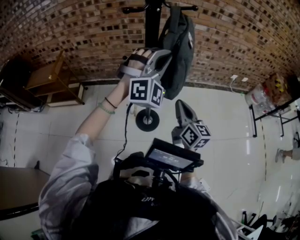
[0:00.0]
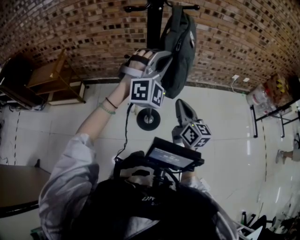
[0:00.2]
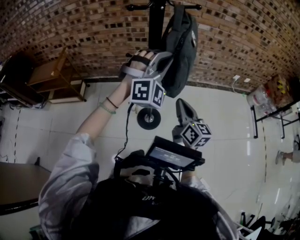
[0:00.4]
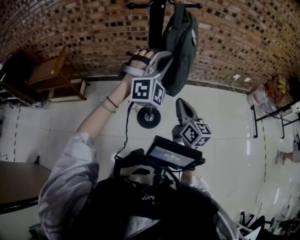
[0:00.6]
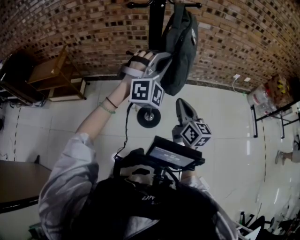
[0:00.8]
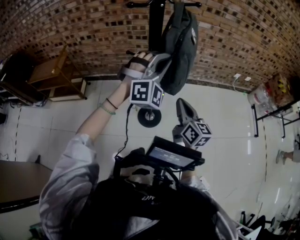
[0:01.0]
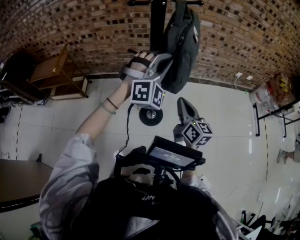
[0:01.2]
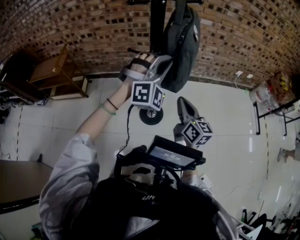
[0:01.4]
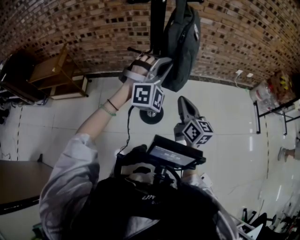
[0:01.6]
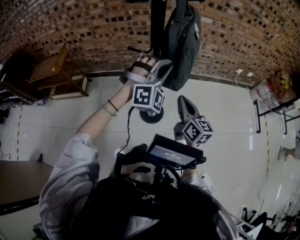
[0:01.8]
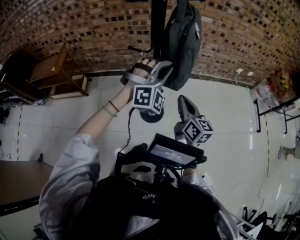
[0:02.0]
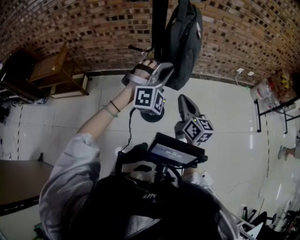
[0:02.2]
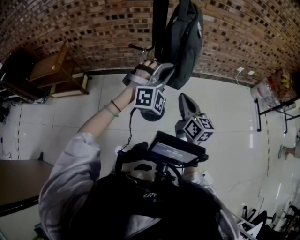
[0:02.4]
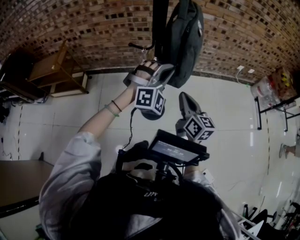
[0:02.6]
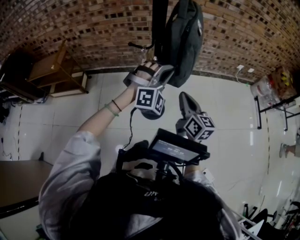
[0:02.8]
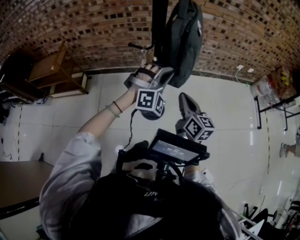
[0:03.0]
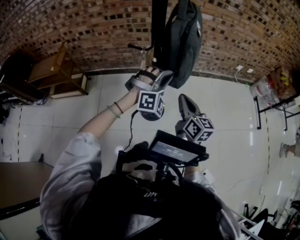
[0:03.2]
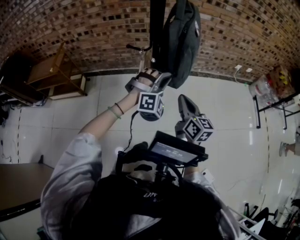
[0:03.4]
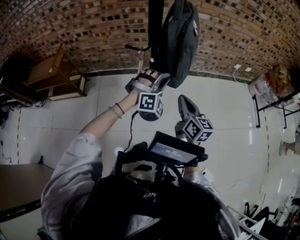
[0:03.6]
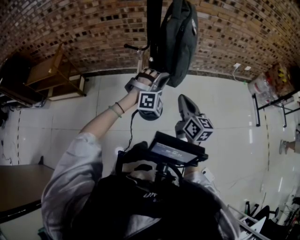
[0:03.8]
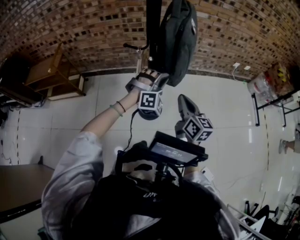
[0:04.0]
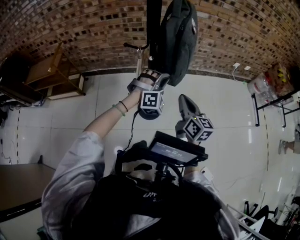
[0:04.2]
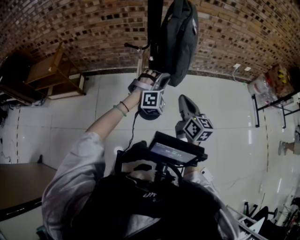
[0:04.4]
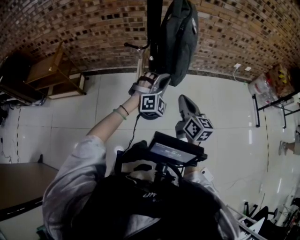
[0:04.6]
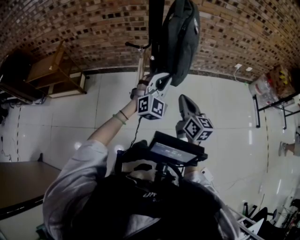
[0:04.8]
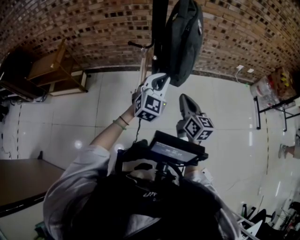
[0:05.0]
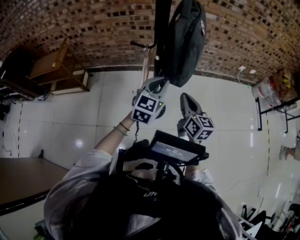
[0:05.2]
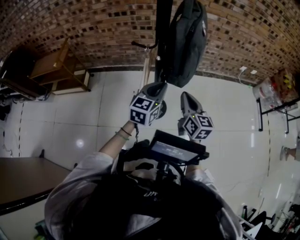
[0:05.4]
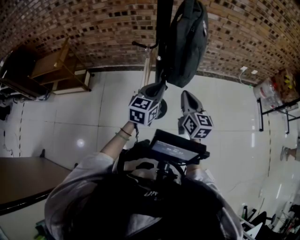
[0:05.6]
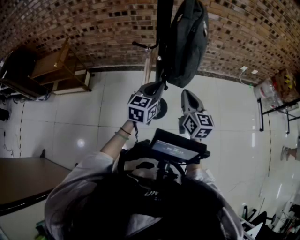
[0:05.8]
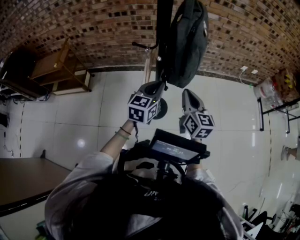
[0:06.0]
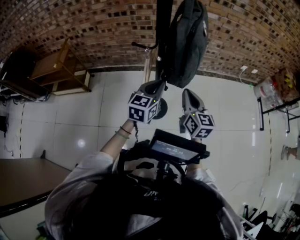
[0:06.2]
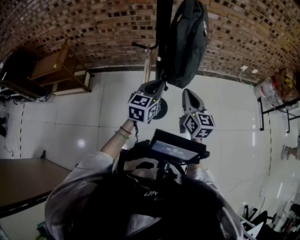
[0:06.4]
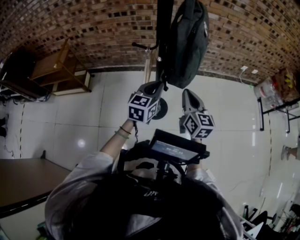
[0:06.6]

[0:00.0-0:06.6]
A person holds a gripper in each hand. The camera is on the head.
0:00.0 to 0:01.6: The left gripper is displaced downward by roughly 5 cm.
0:01.6 to 0:03.2: The left gripper moves downward, about 10 cm.
0:03.2 to 0:05.0: The left gripper rotates around the line of its fingers by some 50 degrees, counterclockwise from behind.
0:05.0 to 0:06.6: The left gripper moves about 5 cm, and turns by about 30 degrees.

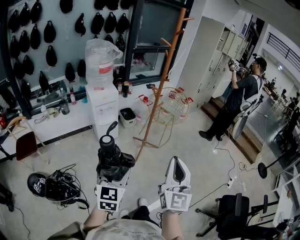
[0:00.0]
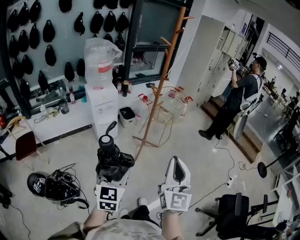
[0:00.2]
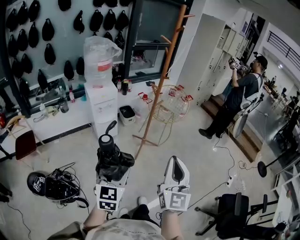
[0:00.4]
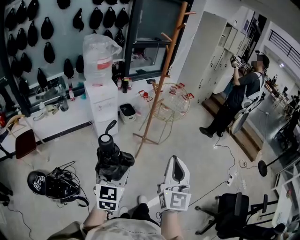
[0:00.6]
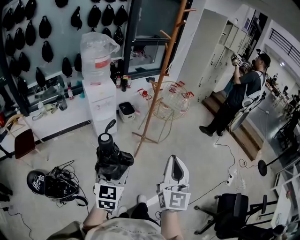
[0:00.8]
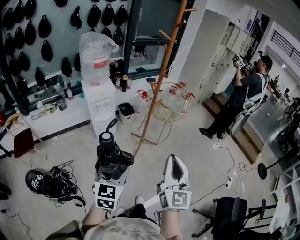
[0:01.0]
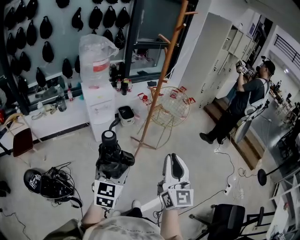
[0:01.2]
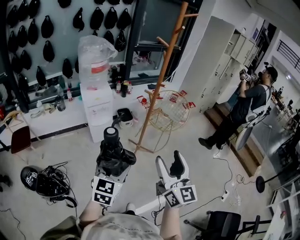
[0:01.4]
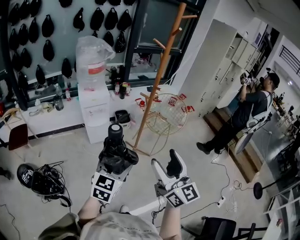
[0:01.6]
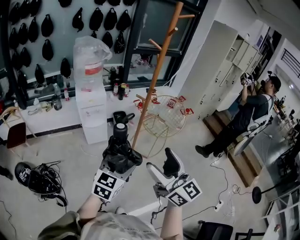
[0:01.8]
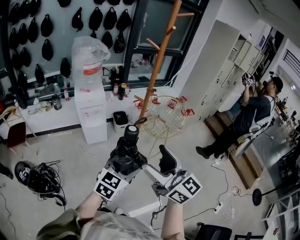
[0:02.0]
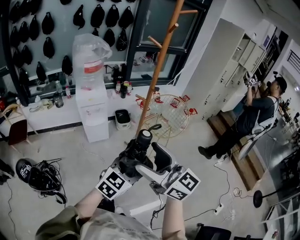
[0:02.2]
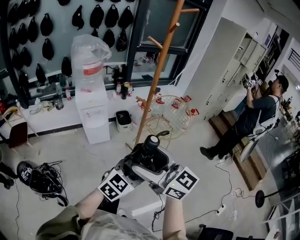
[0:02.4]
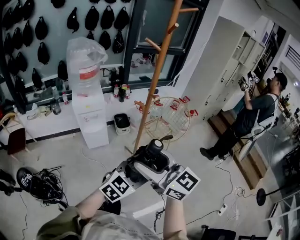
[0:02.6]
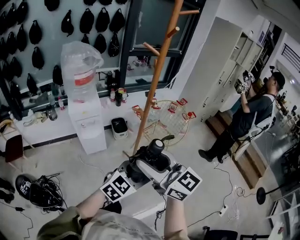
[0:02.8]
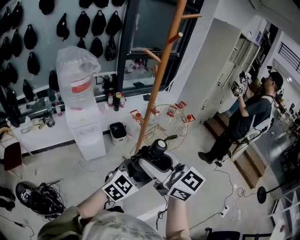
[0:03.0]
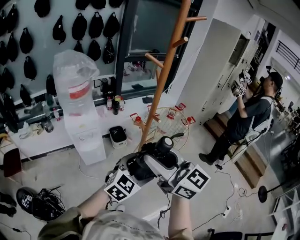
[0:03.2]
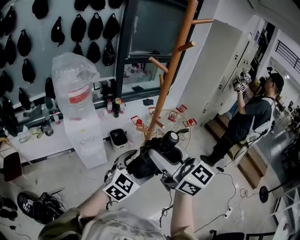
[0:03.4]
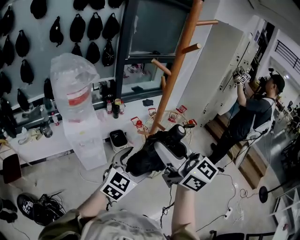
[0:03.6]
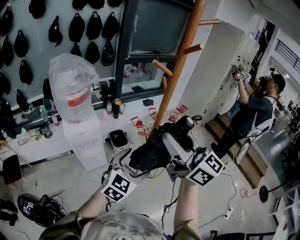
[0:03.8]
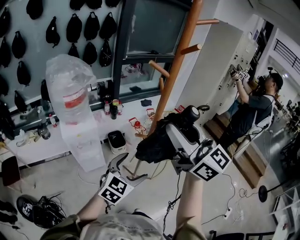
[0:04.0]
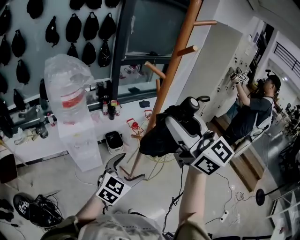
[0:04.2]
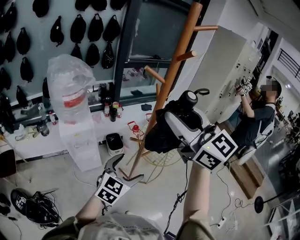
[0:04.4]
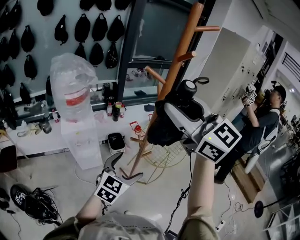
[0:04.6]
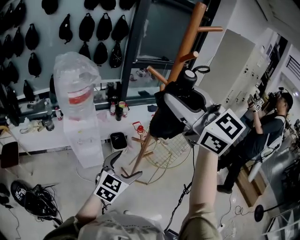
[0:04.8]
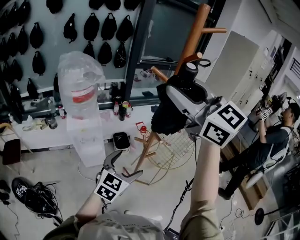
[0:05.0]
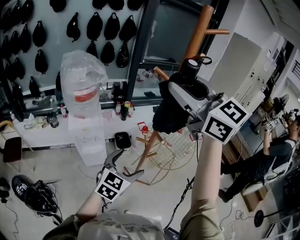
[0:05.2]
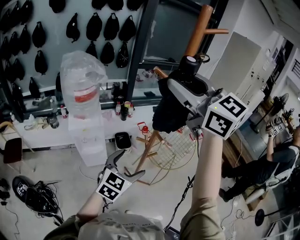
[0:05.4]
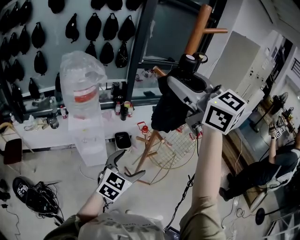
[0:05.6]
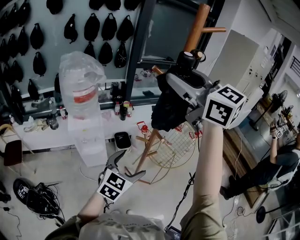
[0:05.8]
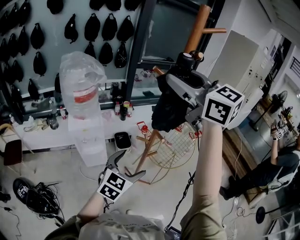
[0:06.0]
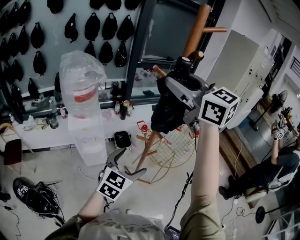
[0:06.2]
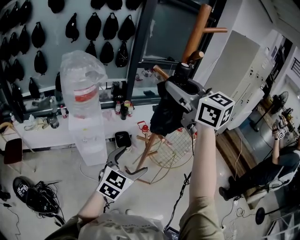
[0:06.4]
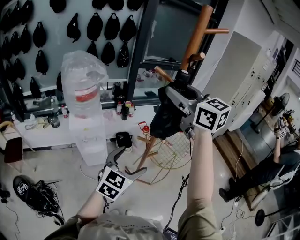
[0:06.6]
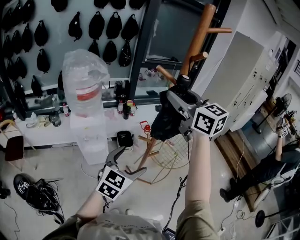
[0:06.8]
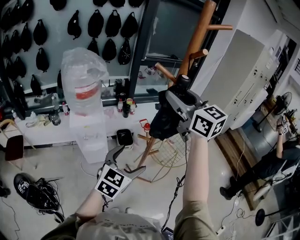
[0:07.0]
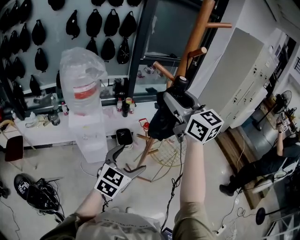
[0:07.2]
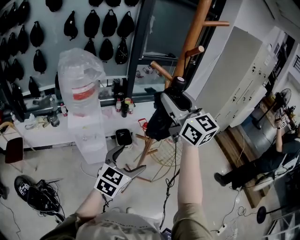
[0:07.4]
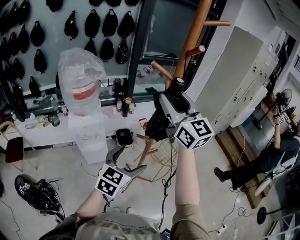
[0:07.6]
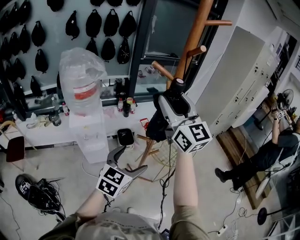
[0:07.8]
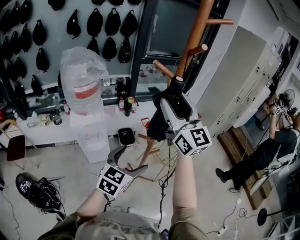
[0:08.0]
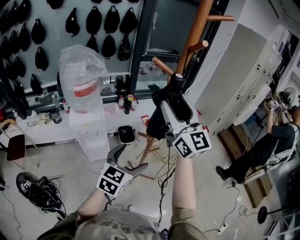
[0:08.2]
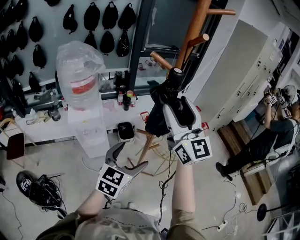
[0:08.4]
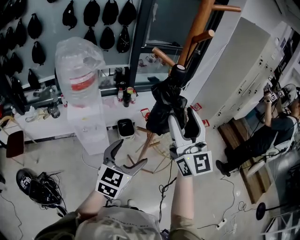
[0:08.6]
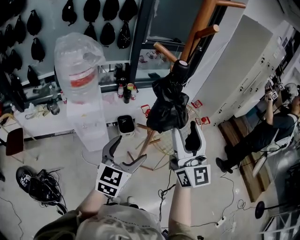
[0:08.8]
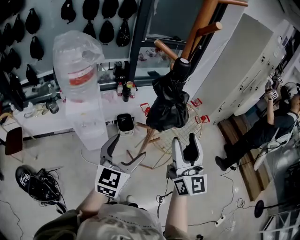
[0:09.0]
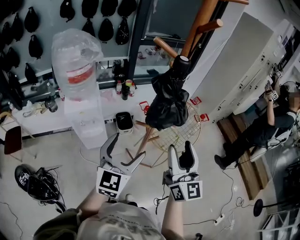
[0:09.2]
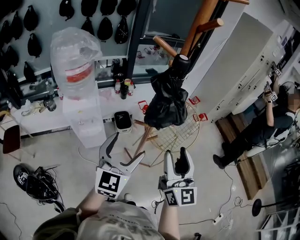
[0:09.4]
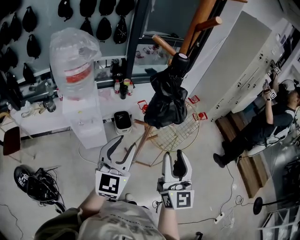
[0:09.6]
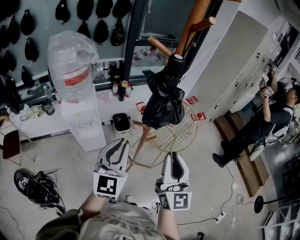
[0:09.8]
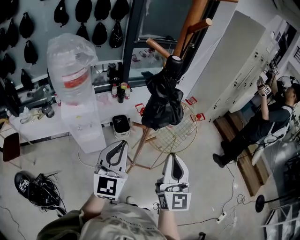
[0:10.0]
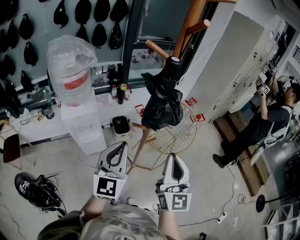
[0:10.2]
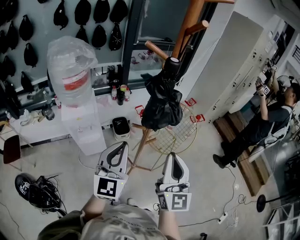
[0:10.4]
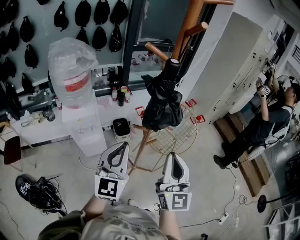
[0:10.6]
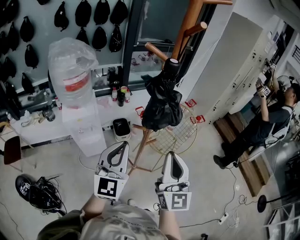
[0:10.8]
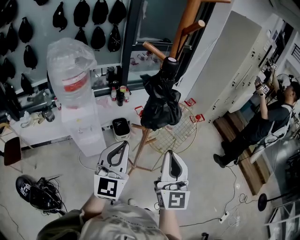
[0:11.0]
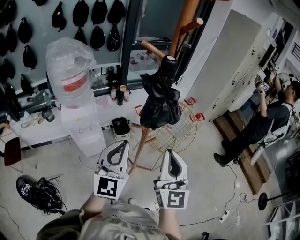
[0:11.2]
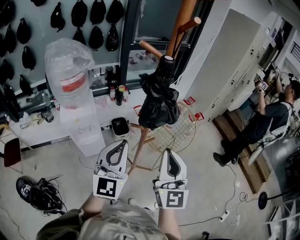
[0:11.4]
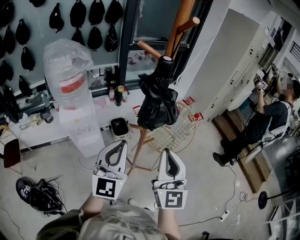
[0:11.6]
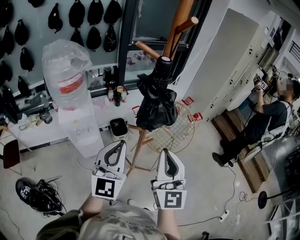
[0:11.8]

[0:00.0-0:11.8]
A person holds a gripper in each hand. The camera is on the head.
0:00.0 to 0:01.4: The right gripper heads forward, covering roughly 15 cm, swivels roughly 30 degrees, and opens, while the left gripper is displaced forward and to the right by approximately 15 cm.
0:01.4 to 0:03.0: The left gripper moves forward and to the right, roughly 25 cm, and rotates about 30 degrees, while the right gripper is displaced forward by roughly 20 cm, and turns by some 40 degrees.
0:03.0 to 0:04.4: The right gripper is displaced forward and upward by roughly 25 cm, while the left gripper goes some 15 cm forward.
0:04.4 to 0:06.0: The right gripper goes about 10 cm forward and upward.
0:06.0 to 0:07.4: The right gripper heads downward, covering some 10 cm.
0:07.4 to 0:08.8: The right gripper shifts roughly 15 cm downward, backward and to the right, and changes its angle by roughly 20 degrees.
0:08.8 to 0:10.4: The right gripper shifts roughly 10 cm backward and downward, and closes up; the left gripper rotates about 20 degrees, and closes up.
0:10.4 to 0:11.8: The grippers make only small movements.

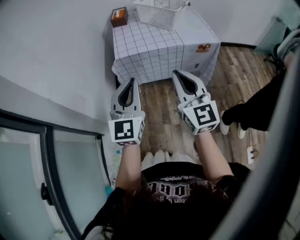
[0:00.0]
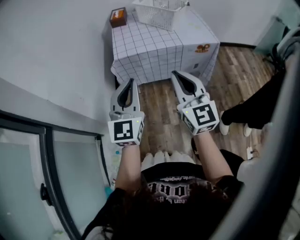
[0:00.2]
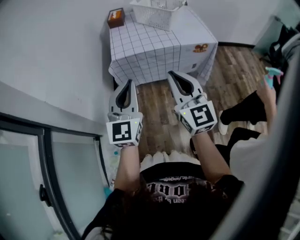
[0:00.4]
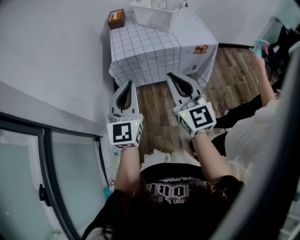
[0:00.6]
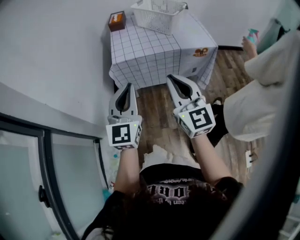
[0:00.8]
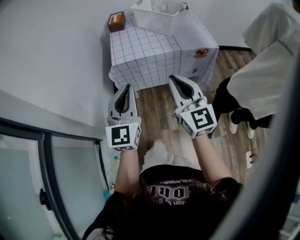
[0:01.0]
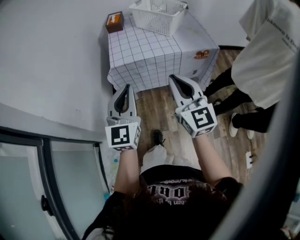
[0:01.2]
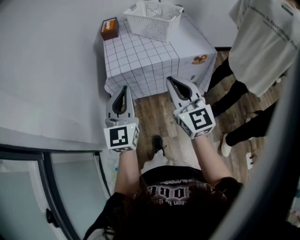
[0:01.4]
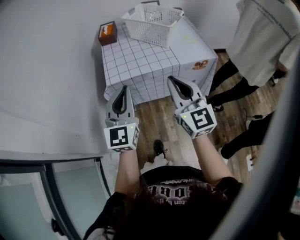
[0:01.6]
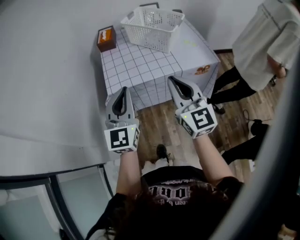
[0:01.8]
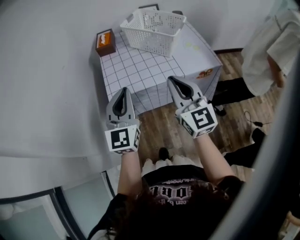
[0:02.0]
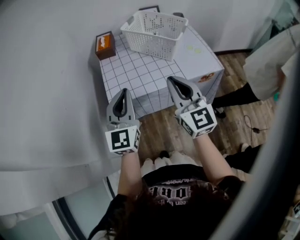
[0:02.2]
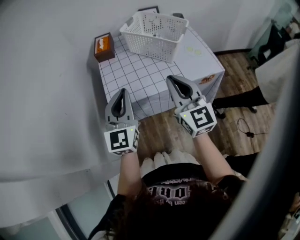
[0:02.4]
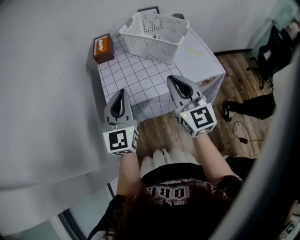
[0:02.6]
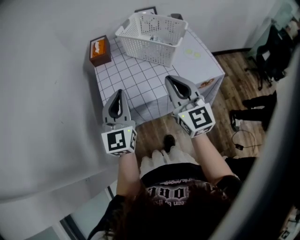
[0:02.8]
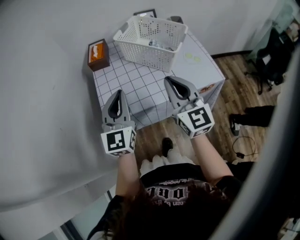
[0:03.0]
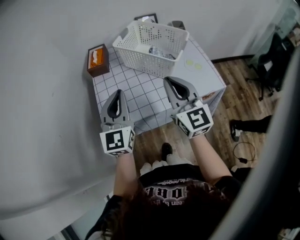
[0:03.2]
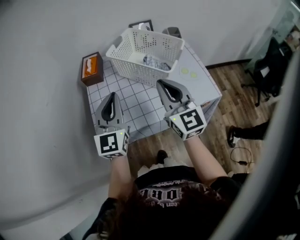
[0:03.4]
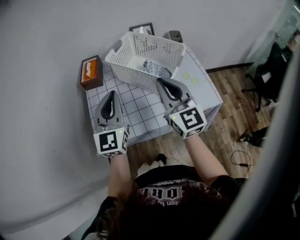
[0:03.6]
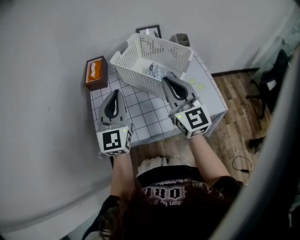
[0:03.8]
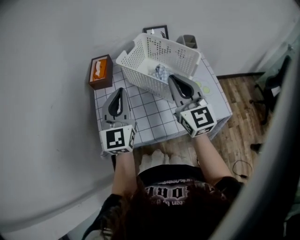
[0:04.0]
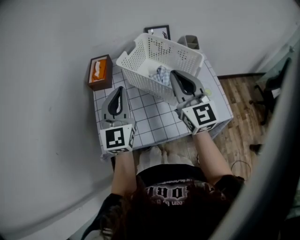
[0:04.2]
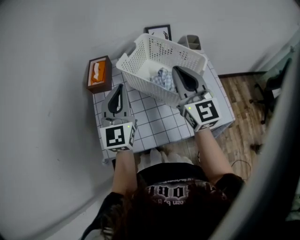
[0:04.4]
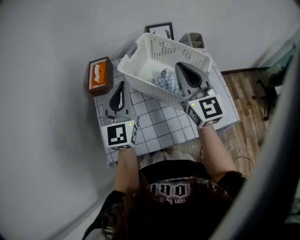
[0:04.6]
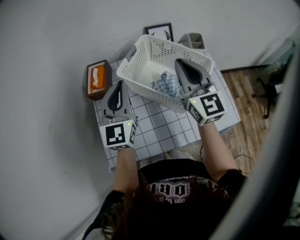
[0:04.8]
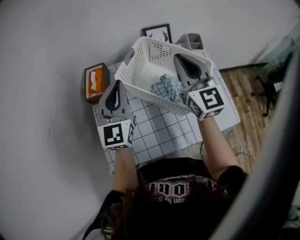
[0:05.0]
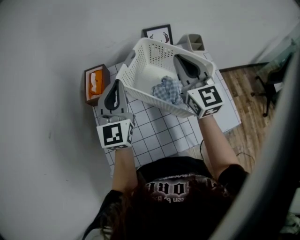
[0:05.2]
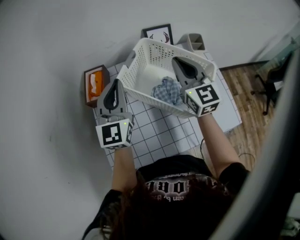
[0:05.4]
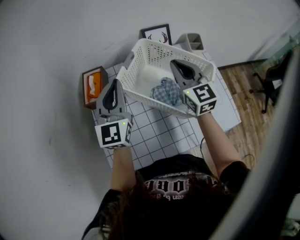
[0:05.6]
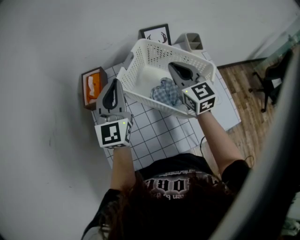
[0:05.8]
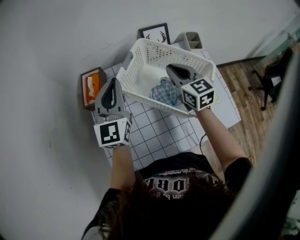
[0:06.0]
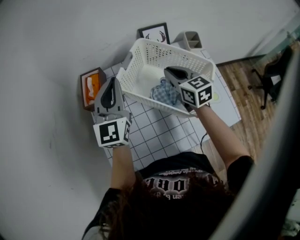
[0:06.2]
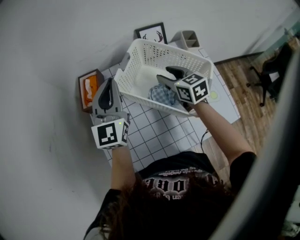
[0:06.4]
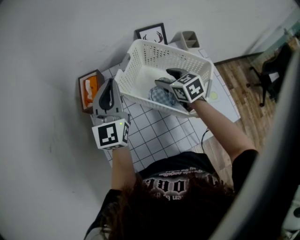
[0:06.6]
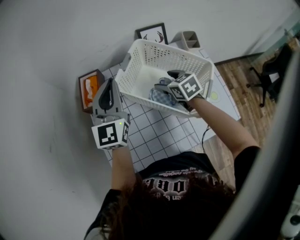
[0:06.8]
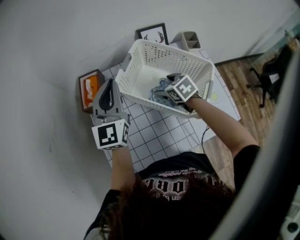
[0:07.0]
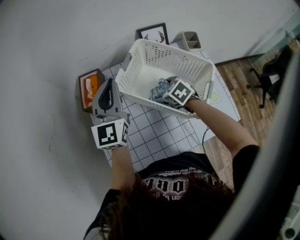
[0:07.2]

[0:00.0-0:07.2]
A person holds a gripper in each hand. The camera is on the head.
0:00.0 to 0:01.4: The grippers both shift forward by roughly 10 cm.
0:01.4 to 0:02.8: The two grippers go roughly 25 cm forward.
0:02.8 to 0:04.4: Both grippers move forward, some 25 cm.
0:04.4 to 0:05.8: The left gripper moves forward, some 10 cm. Meanwhile the right gripper is displaced forward and downward by roughly 15 cm.
0:05.8 to 0:07.2: The right gripper travels downward by approximately 20 cm, points its fingers about 50 degrees further downward, and opens up.
